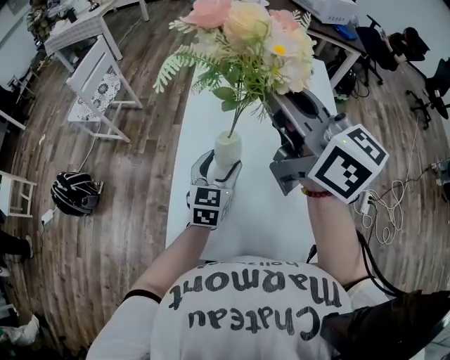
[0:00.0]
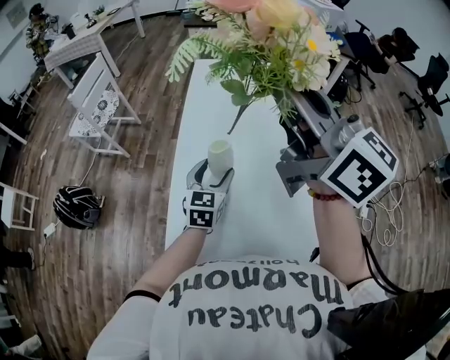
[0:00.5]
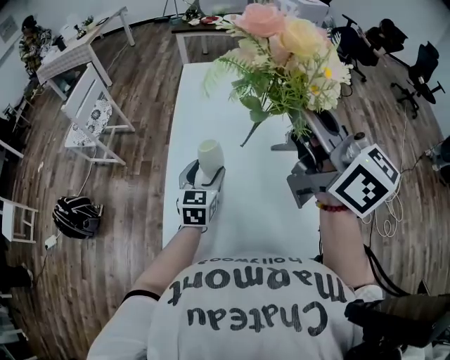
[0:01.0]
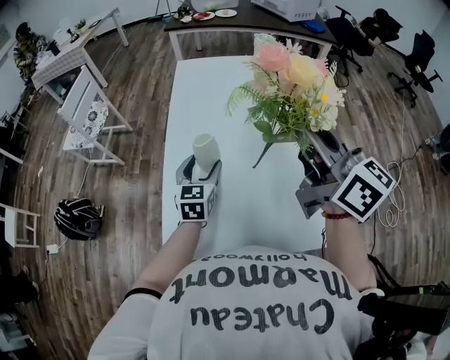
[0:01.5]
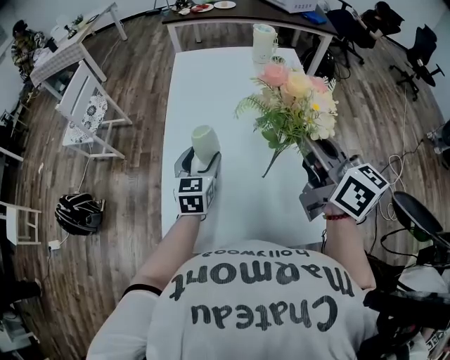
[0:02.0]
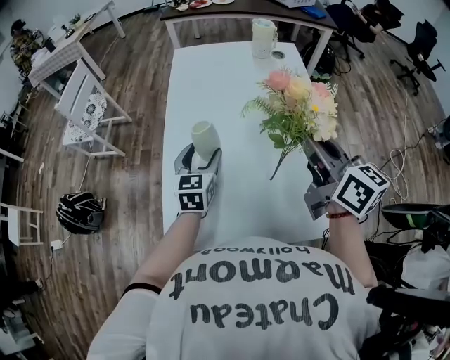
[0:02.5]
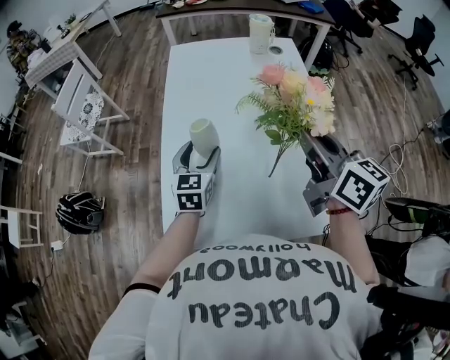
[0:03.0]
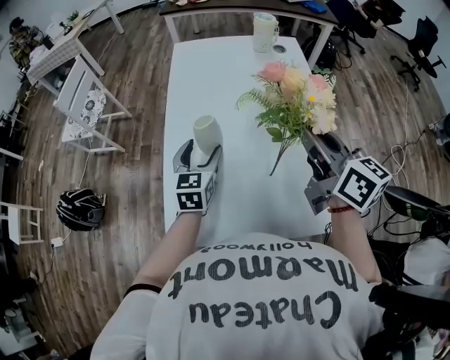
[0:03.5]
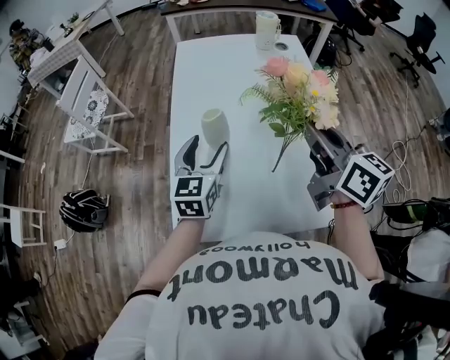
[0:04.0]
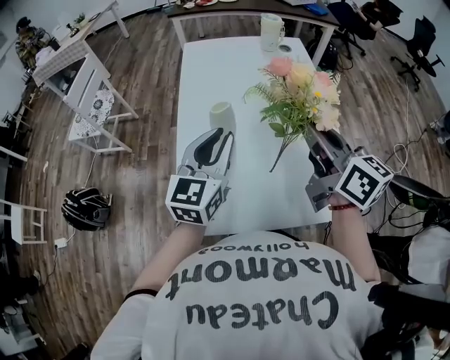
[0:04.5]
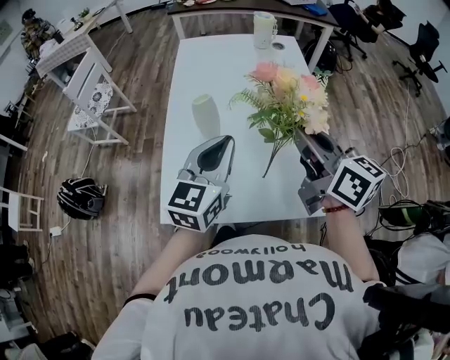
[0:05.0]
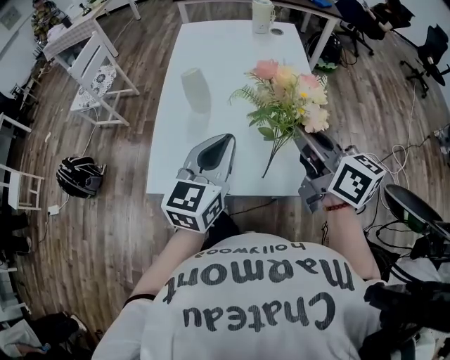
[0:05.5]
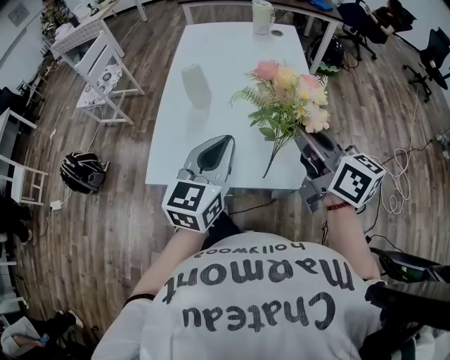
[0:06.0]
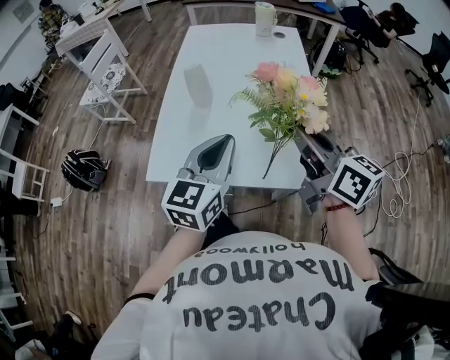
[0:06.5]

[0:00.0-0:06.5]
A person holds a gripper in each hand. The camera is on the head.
0.0 to 2.0 s: The right gripper heads to the right, backward and downward, covering approximately 20 cm.
2.0 to 4.5 s: The left gripper shifts roughly 15 cm upward and backward, changes its angle by roughly 20 degrees, and closes.
4.5 to 6.5 s: The grippers both shift backward and to the right by roughly 15 cm.

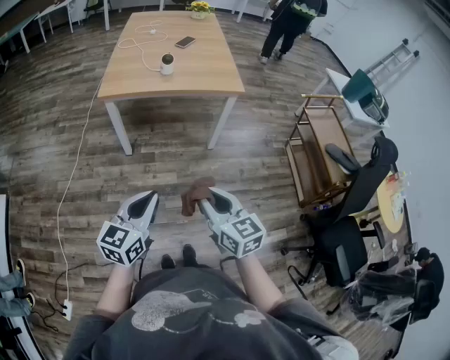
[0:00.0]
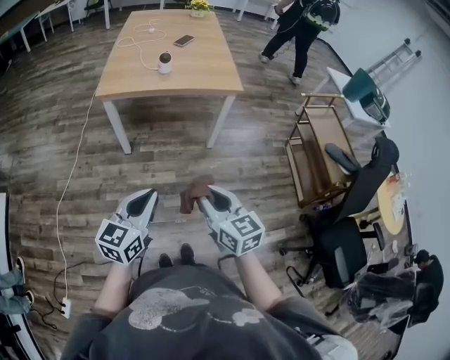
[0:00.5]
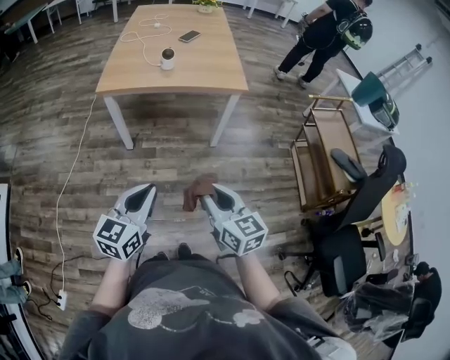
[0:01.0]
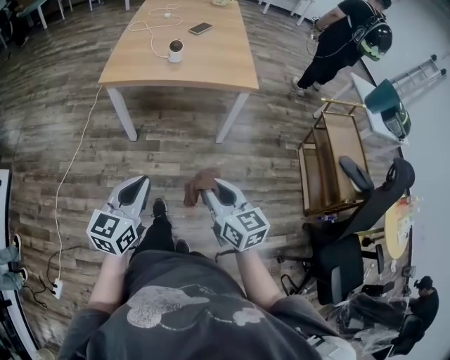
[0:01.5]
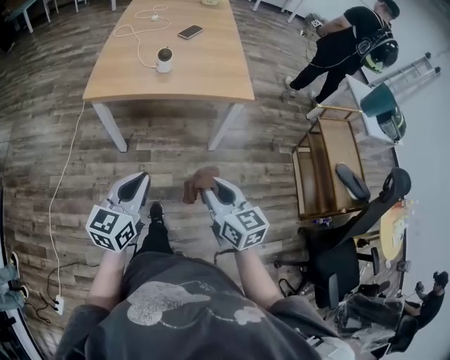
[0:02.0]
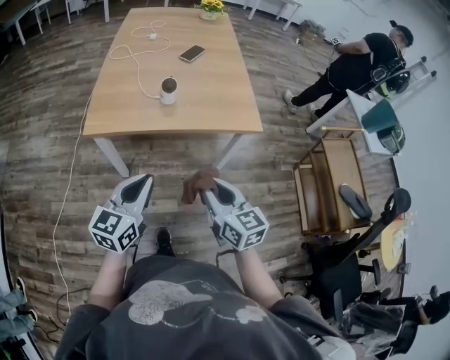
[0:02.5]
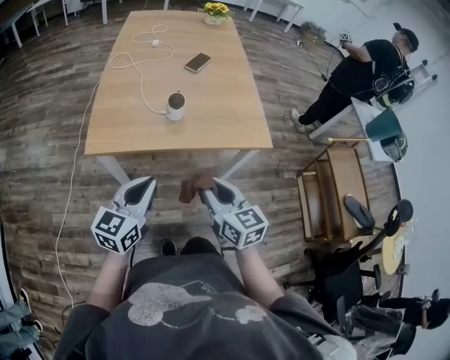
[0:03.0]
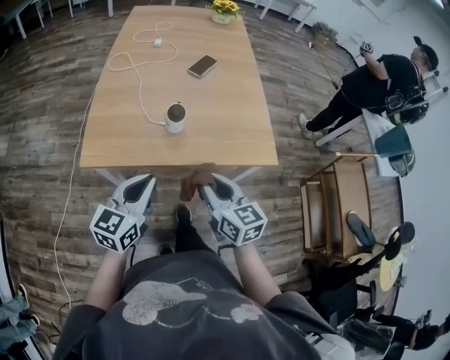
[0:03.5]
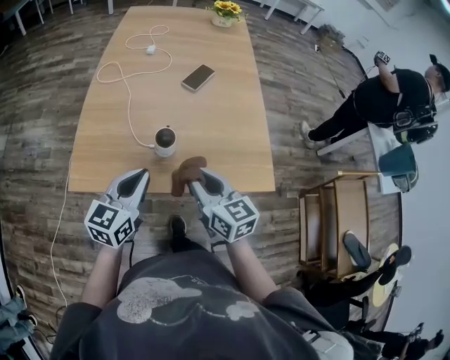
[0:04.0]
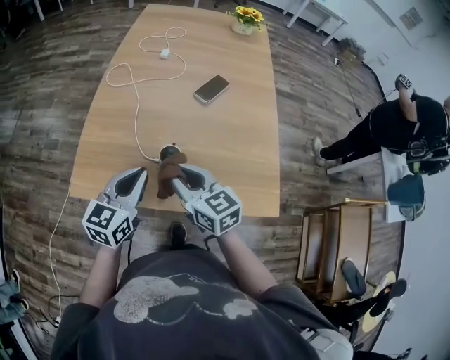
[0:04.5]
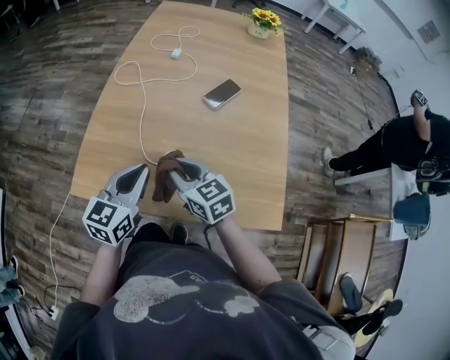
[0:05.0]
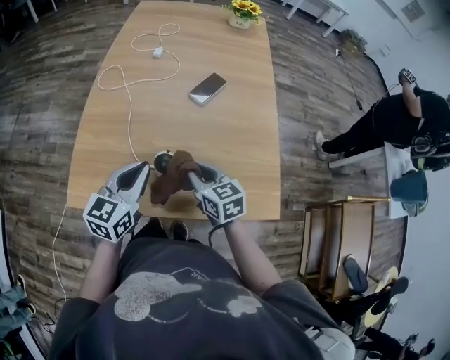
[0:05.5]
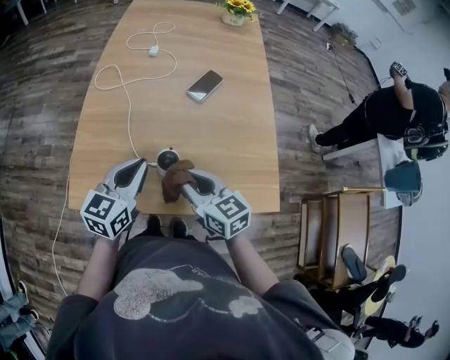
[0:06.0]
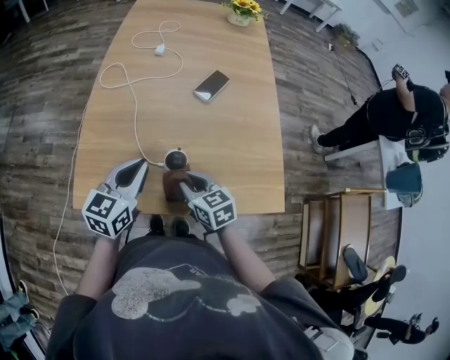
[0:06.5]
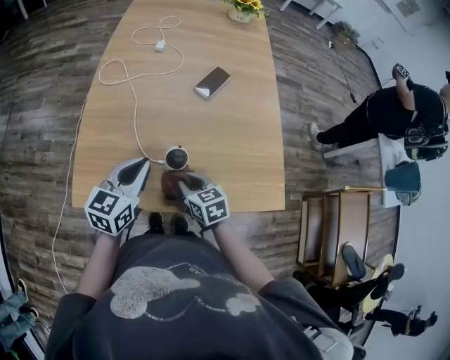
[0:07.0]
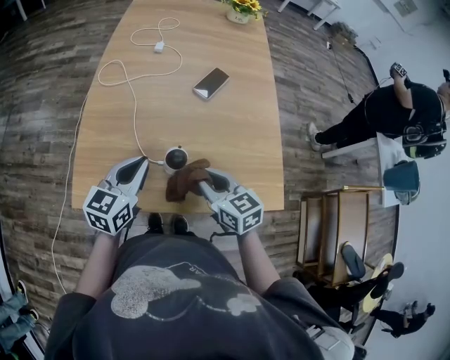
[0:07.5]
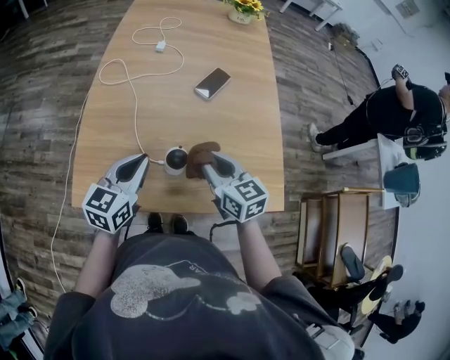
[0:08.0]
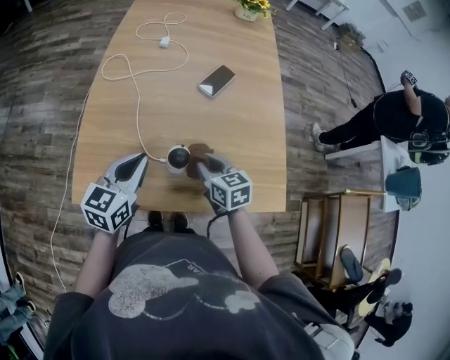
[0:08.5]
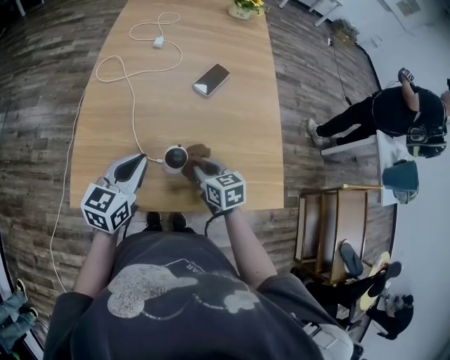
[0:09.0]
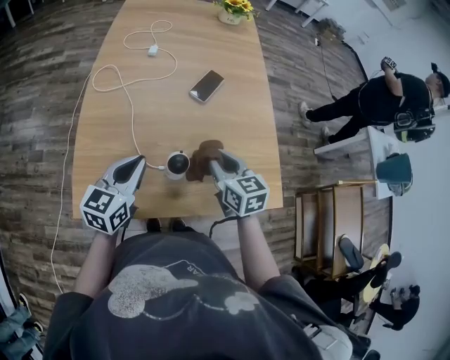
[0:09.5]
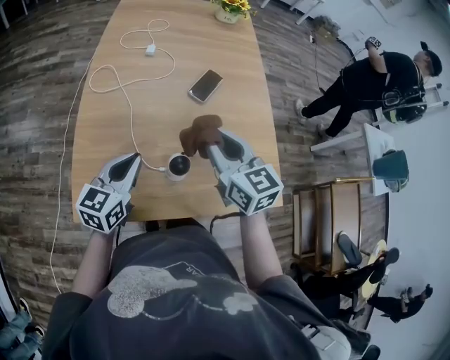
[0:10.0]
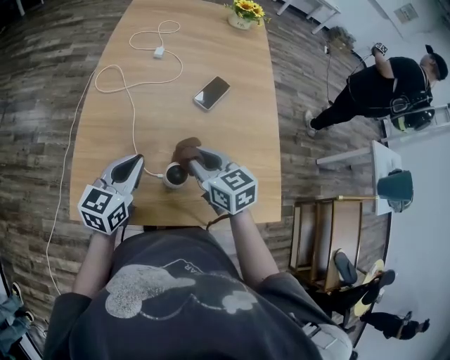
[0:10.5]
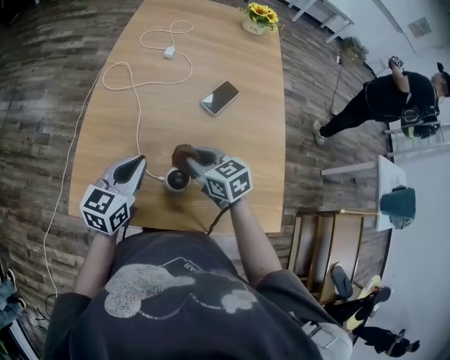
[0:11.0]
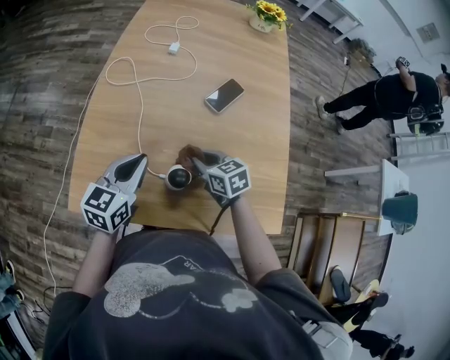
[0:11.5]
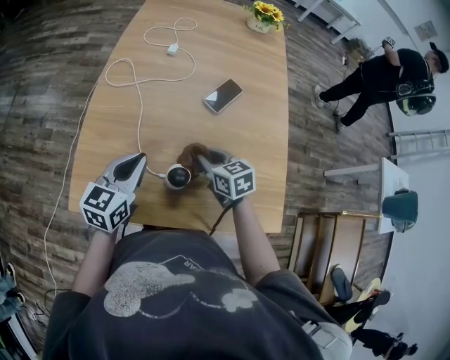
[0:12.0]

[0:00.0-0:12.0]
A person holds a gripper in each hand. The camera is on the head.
0.0 to 2.0 s: The grippers both shift forward by roughly 15 cm.
2.0 to 4.0 s: The grippers both shift forward by about 40 cm.
4.0 to 6.0 s: Both grippers move forward, about 10 cm.
6.0 to 8.0 s: The right gripper goes downward and returns, about 10 cm each way.
8.0 to 10.0 s: The right gripper shifts approximately 10 cm upward.
10.0 to 12.0 s: The right gripper shifts about 20 cm downward, and rotates roughly 30 degrees.

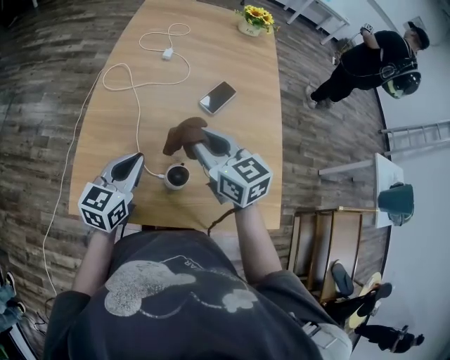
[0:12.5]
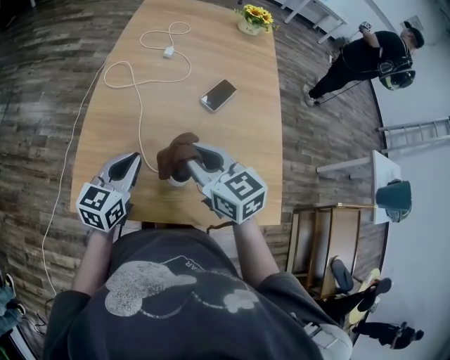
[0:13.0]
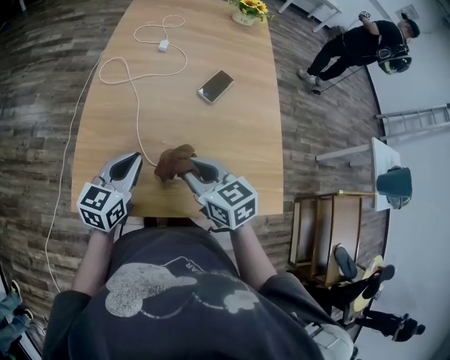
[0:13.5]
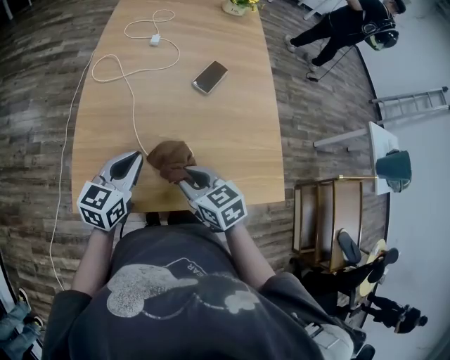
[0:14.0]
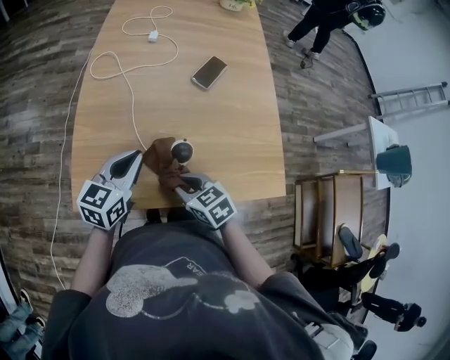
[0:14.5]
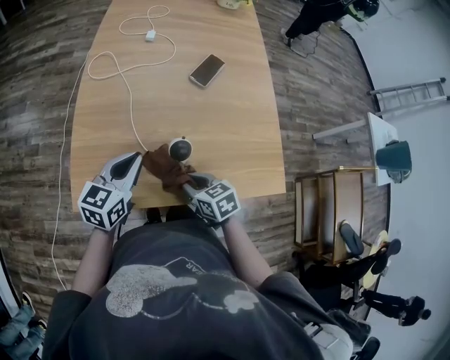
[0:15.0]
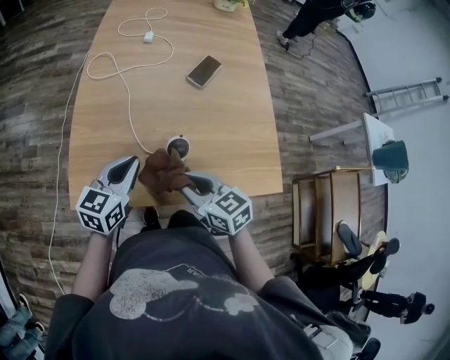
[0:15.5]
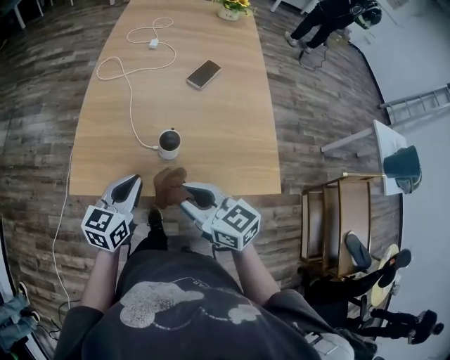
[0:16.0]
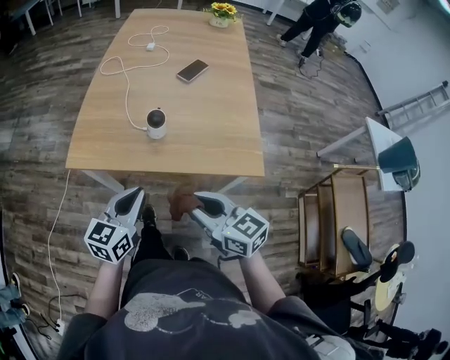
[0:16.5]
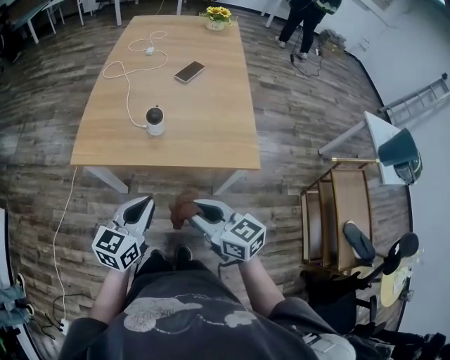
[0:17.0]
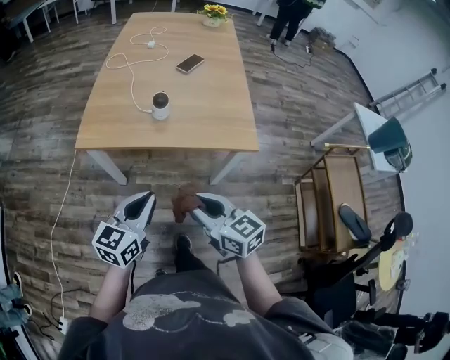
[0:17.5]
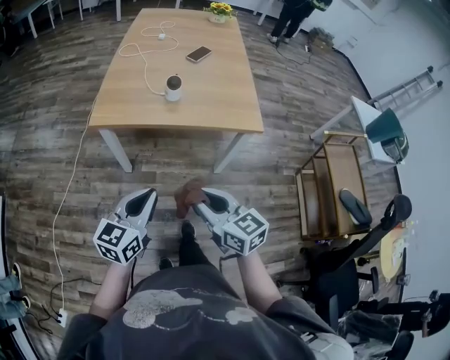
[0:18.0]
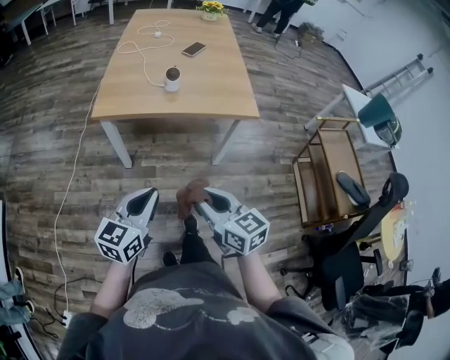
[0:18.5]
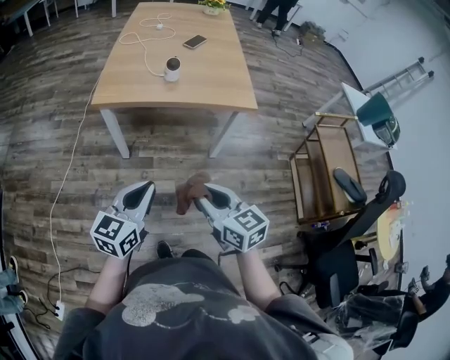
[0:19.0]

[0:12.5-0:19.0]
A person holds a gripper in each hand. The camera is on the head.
12.5 to 14.5 s: The right gripper travels downward and backward by approximately 25 cm, and rotates some 30 degrees.
14.5 to 17.0 s: The right gripper shifts some 30 cm backward, upward and to the right, and tilts its fingers some 30 degrees upward. The left gripper moves backward, some 30 cm.
17.0 to 19.0 s: Both grippers move backward, some 25 cm.

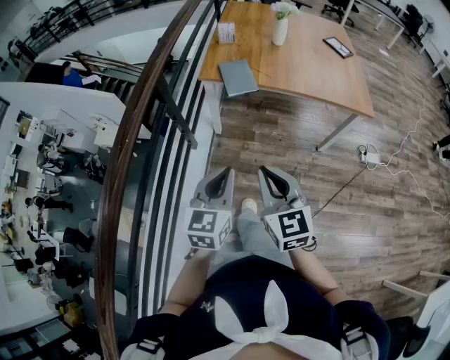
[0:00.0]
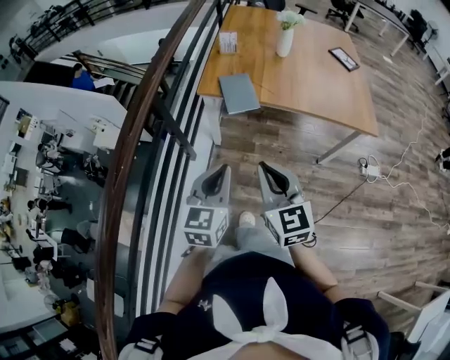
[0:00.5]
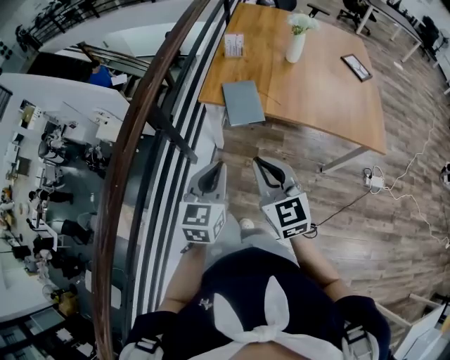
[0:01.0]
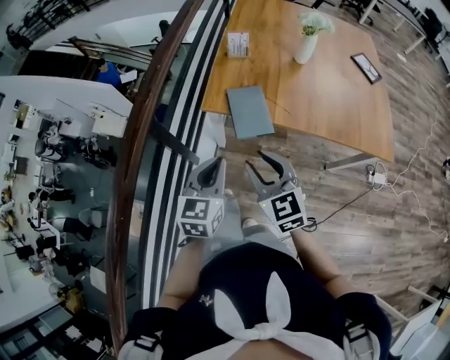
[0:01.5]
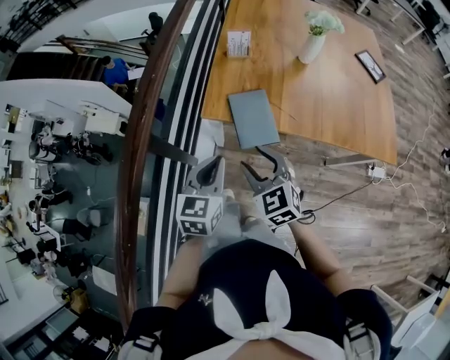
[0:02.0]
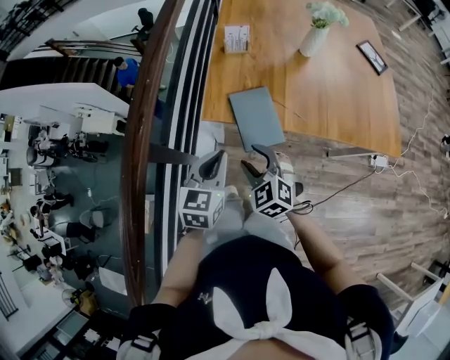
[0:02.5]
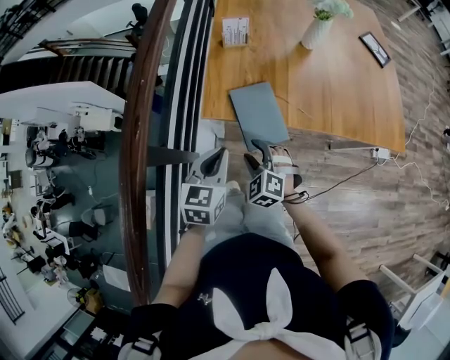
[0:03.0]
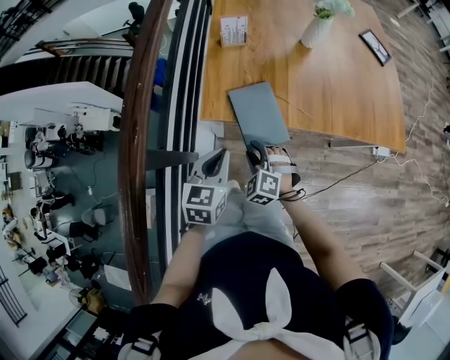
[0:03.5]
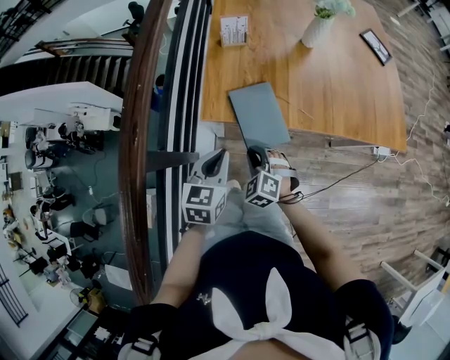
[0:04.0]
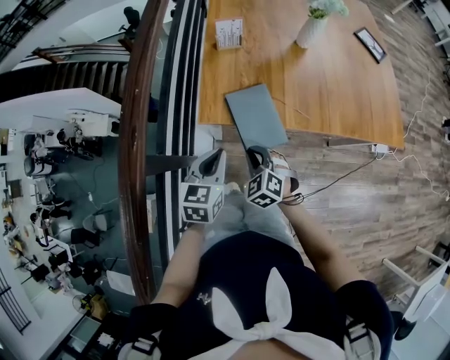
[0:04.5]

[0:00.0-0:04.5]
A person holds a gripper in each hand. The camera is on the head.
0.0 to 2.0 s: The pair of grippers is taken forward, roughly 40 cm. The right gripper turns by about 30 degrees, and opens.
2.0 to 4.5 s: The two grippers go approximately 15 cm downward and forward. The right gripper changes its angle by some 20 degrees, and closes.
